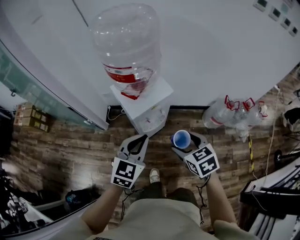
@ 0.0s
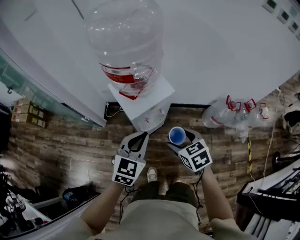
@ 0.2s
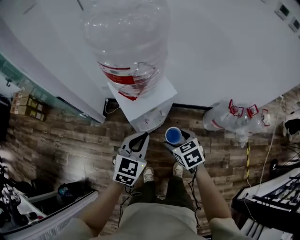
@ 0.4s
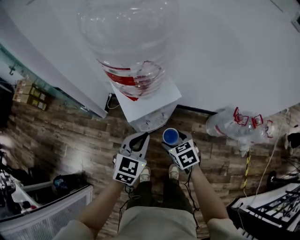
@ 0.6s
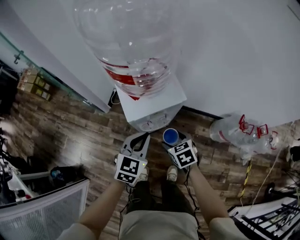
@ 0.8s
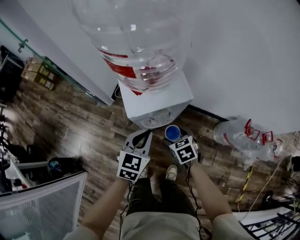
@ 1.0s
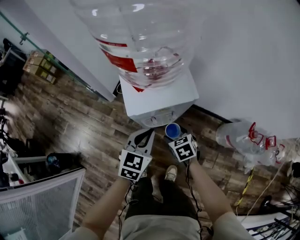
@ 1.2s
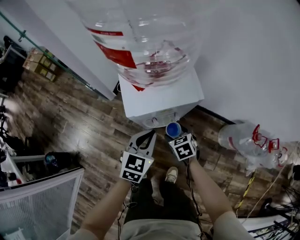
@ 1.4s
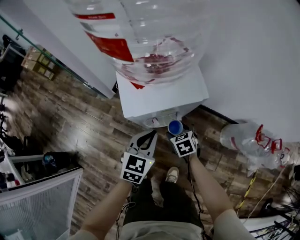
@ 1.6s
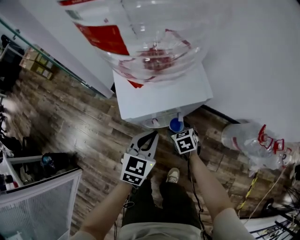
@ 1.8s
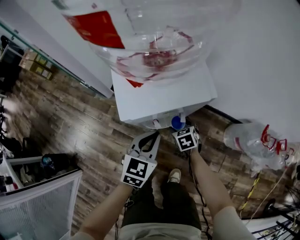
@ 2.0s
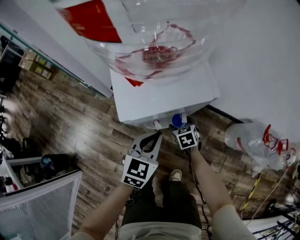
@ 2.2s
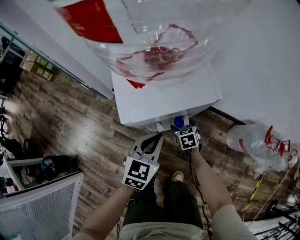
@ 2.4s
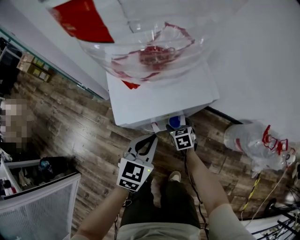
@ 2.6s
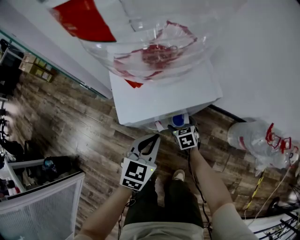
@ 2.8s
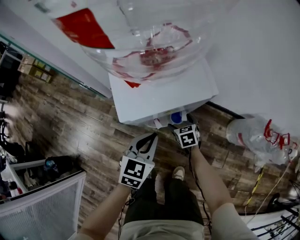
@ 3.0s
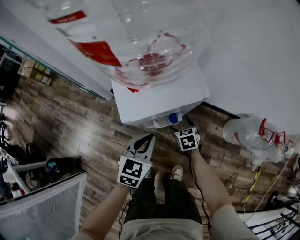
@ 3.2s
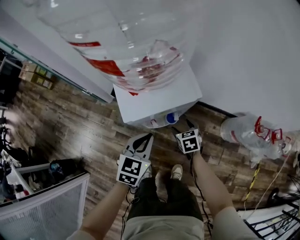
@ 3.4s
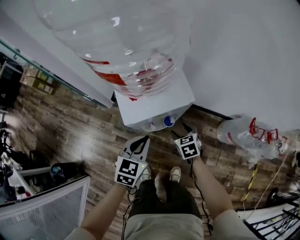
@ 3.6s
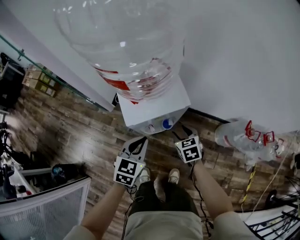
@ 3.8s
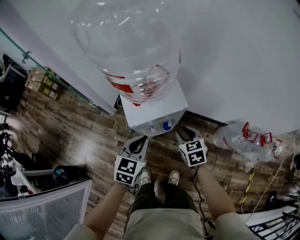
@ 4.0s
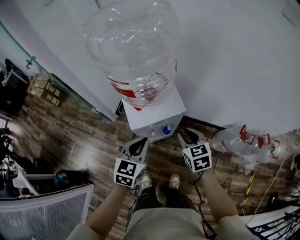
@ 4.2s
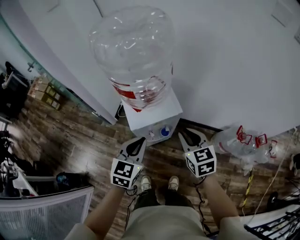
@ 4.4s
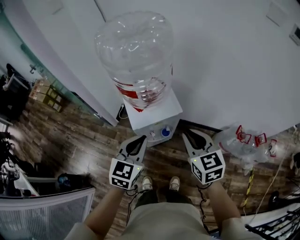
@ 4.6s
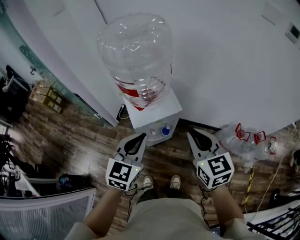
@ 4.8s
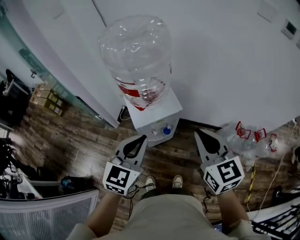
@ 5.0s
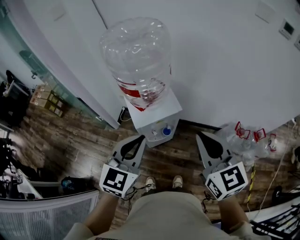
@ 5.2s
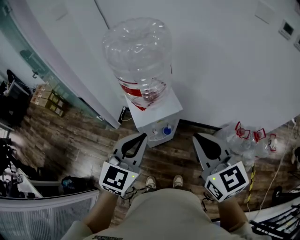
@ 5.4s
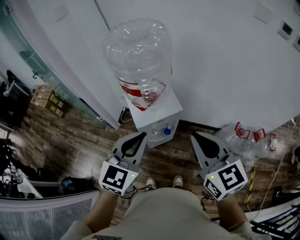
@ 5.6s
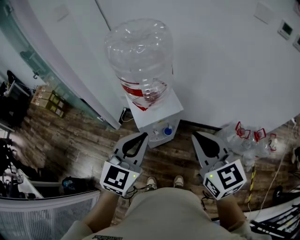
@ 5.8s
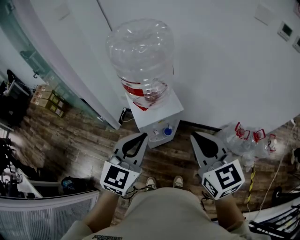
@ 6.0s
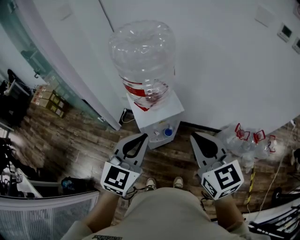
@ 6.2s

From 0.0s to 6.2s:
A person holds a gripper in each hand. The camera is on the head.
From 0.0s to 1.6s: The two grippers go approximately 35 cm downward and forward. The right gripper swivels some 20 degrees, while the left gripper swivels some 30 degrees.
From 3.2s to 4.6s: The right gripper goes approximately 50 cm upward, turns by about 30 degrees, and closes up. The left gripper is displaced upward by approximately 30 cm.
From 4.6s to 6.2s: Both grippers travel together upward and backward, roughly 15 cm.

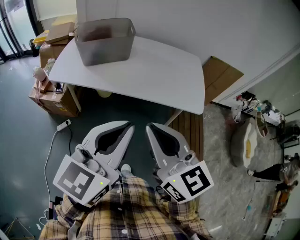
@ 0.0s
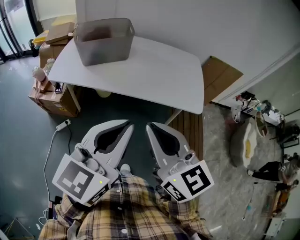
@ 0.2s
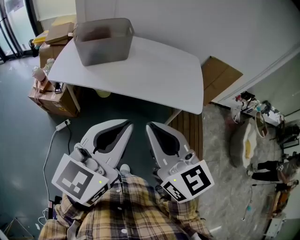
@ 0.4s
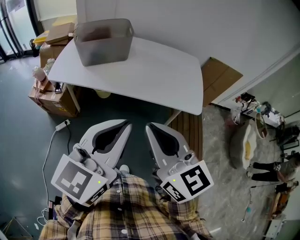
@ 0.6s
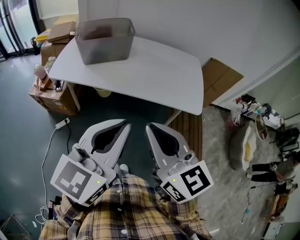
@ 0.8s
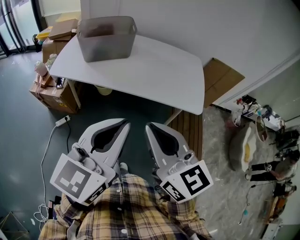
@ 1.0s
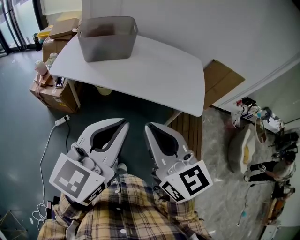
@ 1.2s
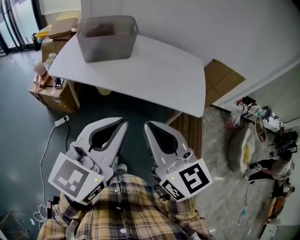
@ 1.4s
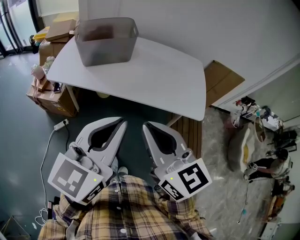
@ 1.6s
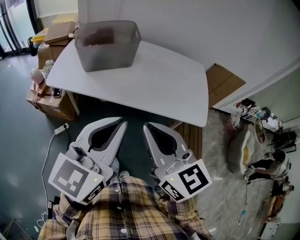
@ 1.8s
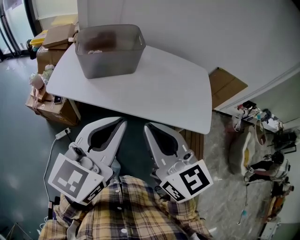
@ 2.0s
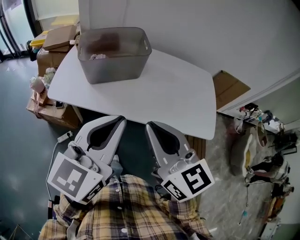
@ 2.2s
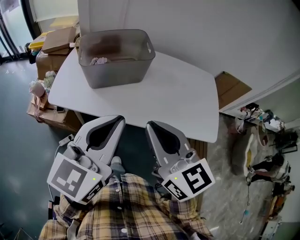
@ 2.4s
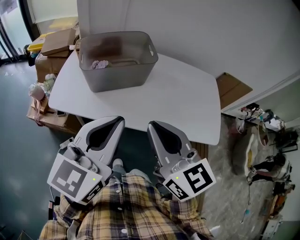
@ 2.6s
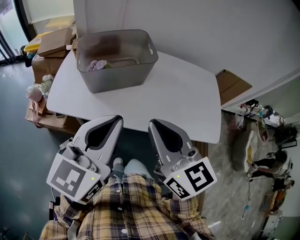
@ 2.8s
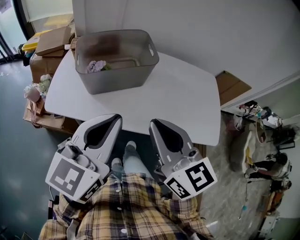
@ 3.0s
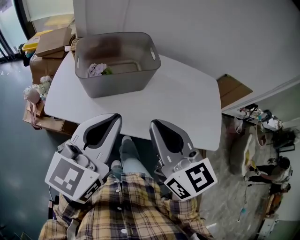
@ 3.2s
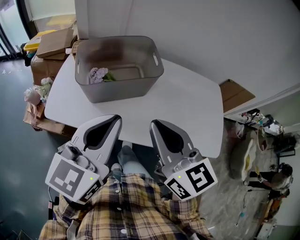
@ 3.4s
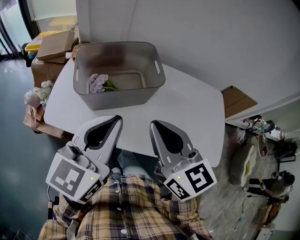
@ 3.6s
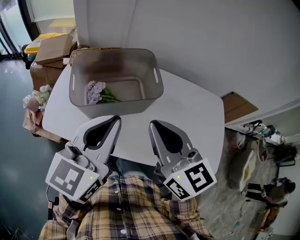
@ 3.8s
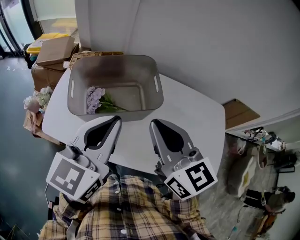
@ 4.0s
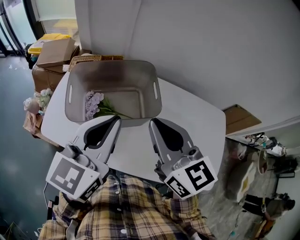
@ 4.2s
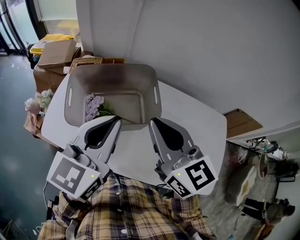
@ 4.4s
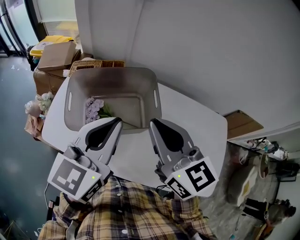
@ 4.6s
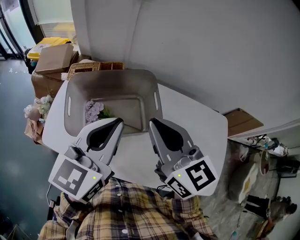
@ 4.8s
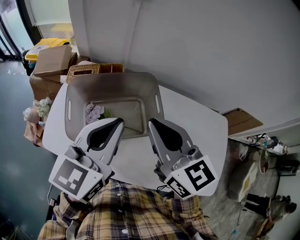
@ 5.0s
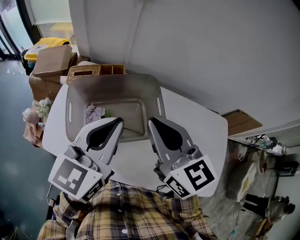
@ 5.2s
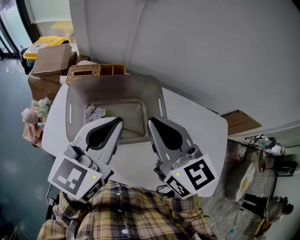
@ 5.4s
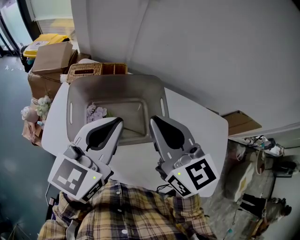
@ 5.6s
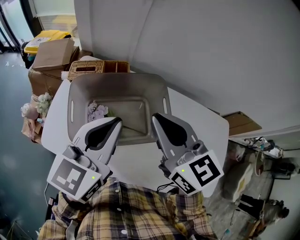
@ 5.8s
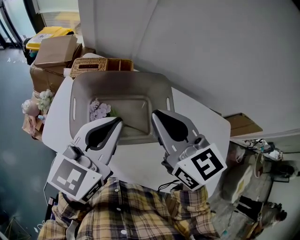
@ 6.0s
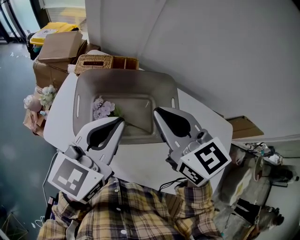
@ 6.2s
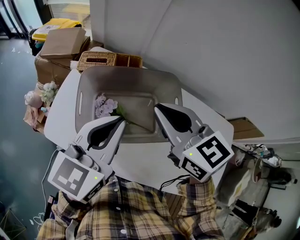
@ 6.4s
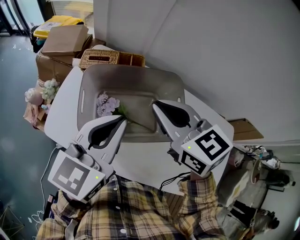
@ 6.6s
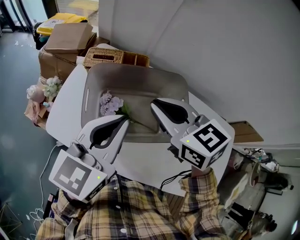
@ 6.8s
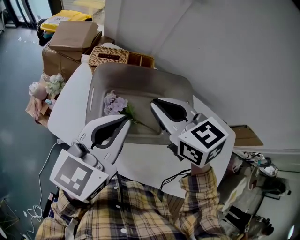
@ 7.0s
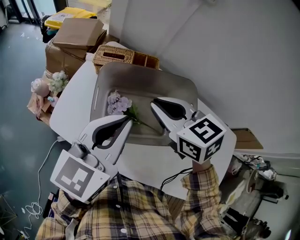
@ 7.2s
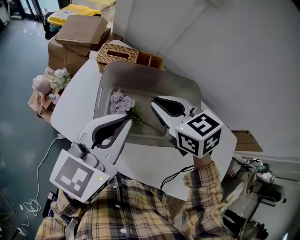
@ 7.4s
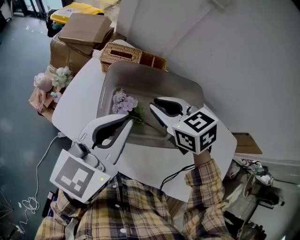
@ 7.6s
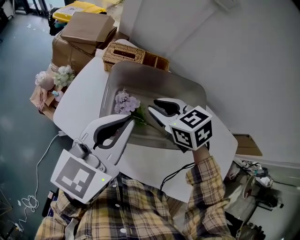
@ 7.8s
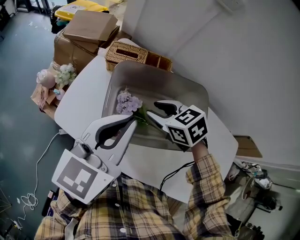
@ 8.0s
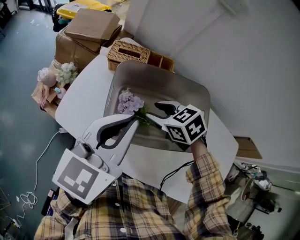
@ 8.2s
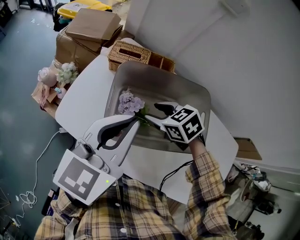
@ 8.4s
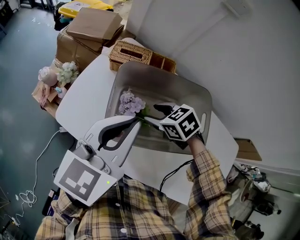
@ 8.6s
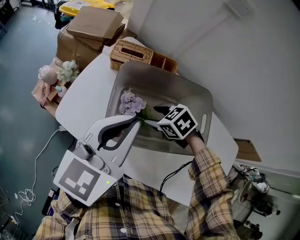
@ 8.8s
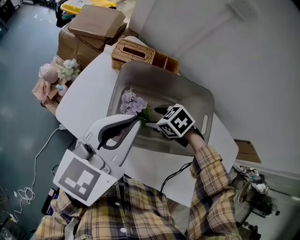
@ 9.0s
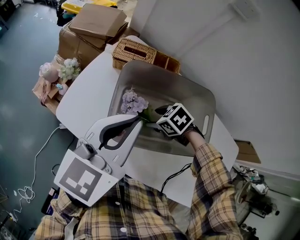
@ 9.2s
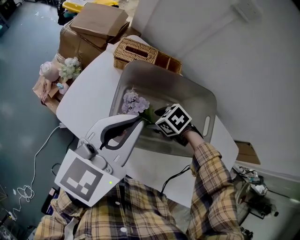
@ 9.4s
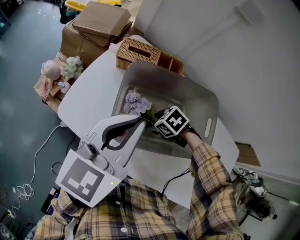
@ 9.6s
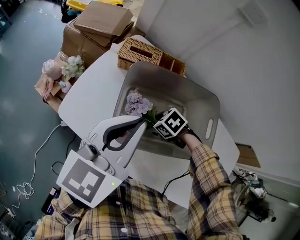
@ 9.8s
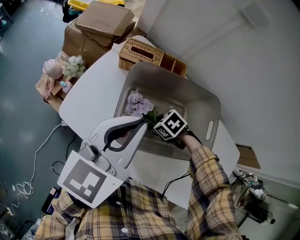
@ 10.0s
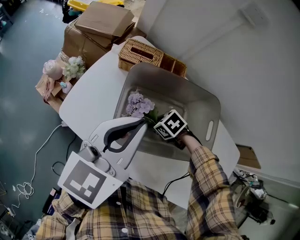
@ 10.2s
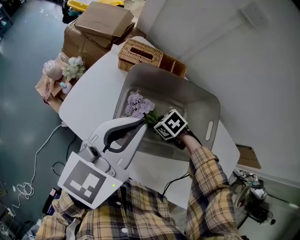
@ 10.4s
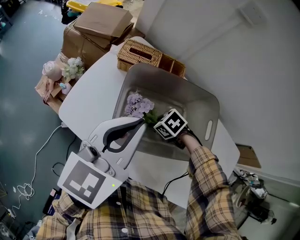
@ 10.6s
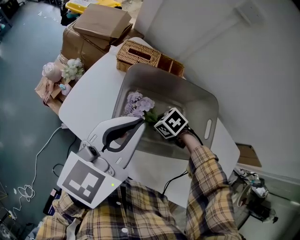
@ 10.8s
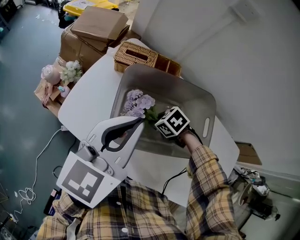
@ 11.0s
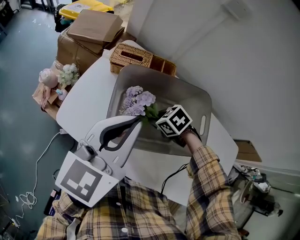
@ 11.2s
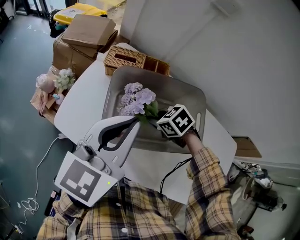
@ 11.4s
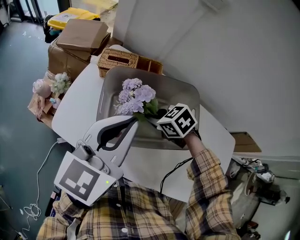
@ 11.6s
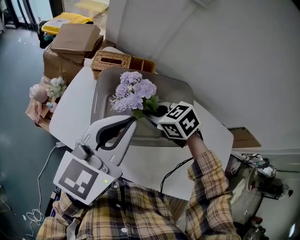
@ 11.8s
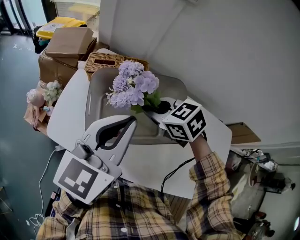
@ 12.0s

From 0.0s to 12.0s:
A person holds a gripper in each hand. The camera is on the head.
From 0.0s to 1.6s: There are only small adjustments of the grippers.
From 1.6s to 3.0s: Both grippers move forward and to the left, some 25 cm.
From 3.0s to 4.4s: The grippers both shift forward by approximately 25 cm.
From 4.4s to 6.0s: The right gripper goes roughly 10 cm forward and to the left; the left gripper travels forward by about 5 cm.
From 6.0s to 7.6s: The right gripper heads downward, to the left and forward, covering some 15 cm, and swivels some 30 degrees, while the left gripper goes about 10 cm to the left.
From 7.6s to 9.0s: The right gripper travels downward by roughly 15 cm, turns by roughly 30 degrees, and opens.
From 9.0s to 10.4s: The right gripper moves downward, roughly 5 cm, and closes its fingers.
From 10.4s to 12.0s: The left gripper changes place by approximately 10 cm, while the right gripper travels upward by roughly 20 cm, and swivels approximately 40 degrees.

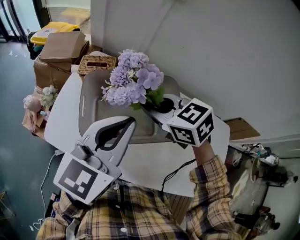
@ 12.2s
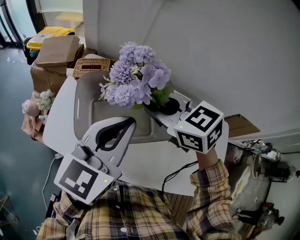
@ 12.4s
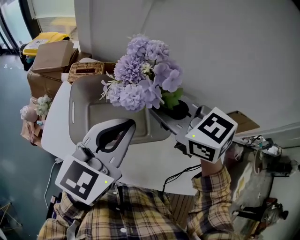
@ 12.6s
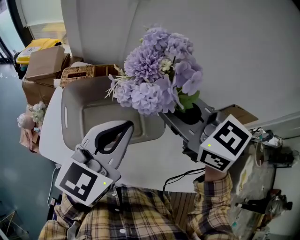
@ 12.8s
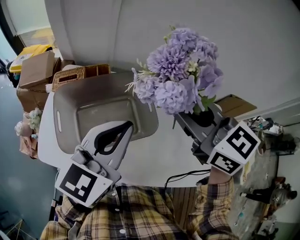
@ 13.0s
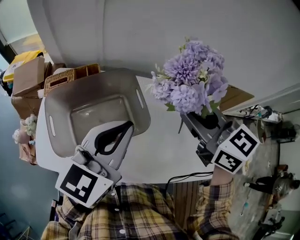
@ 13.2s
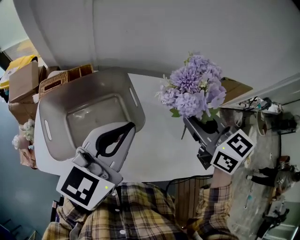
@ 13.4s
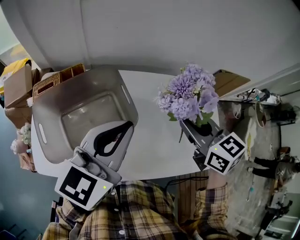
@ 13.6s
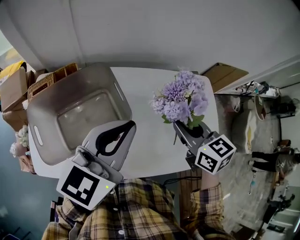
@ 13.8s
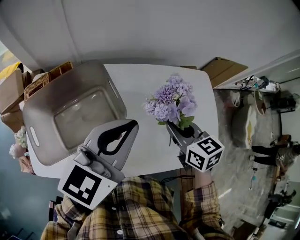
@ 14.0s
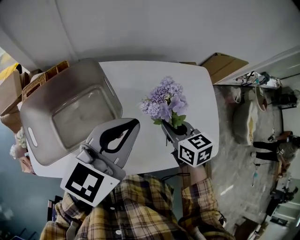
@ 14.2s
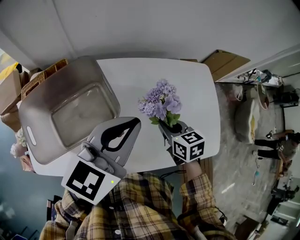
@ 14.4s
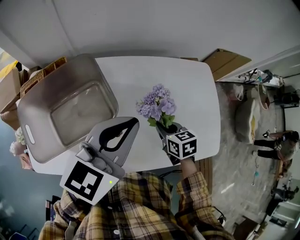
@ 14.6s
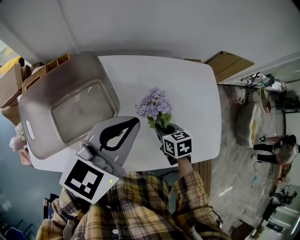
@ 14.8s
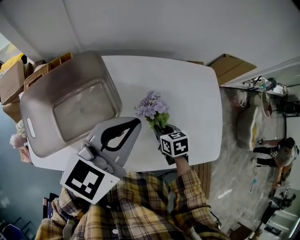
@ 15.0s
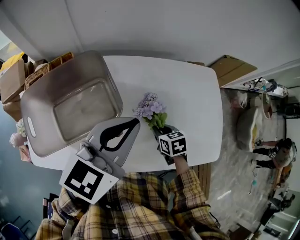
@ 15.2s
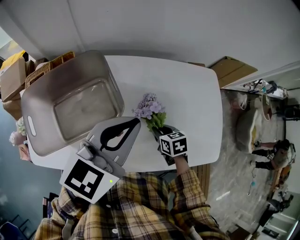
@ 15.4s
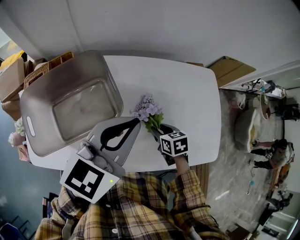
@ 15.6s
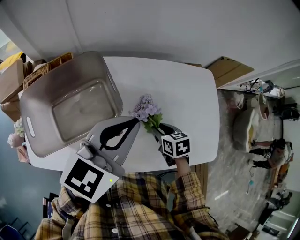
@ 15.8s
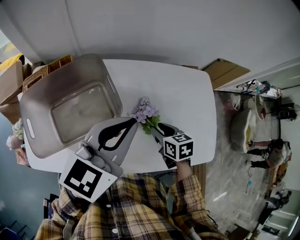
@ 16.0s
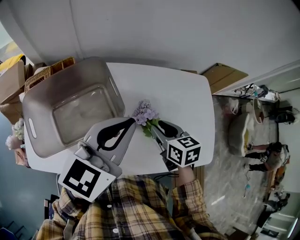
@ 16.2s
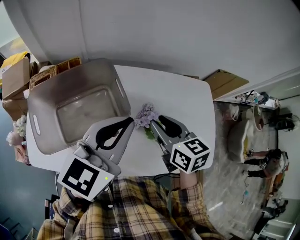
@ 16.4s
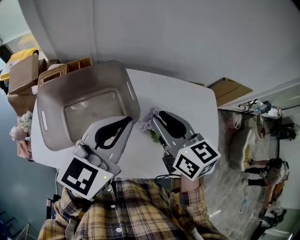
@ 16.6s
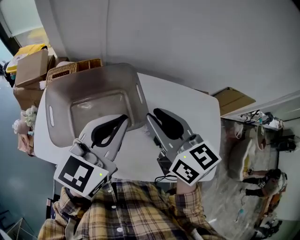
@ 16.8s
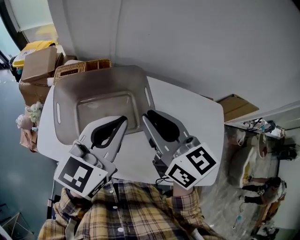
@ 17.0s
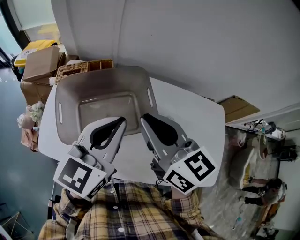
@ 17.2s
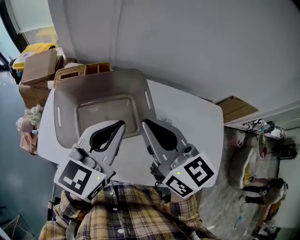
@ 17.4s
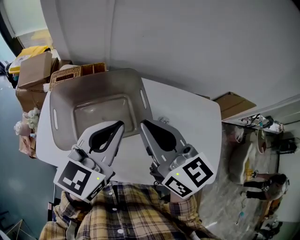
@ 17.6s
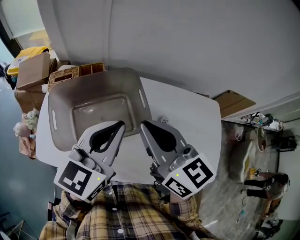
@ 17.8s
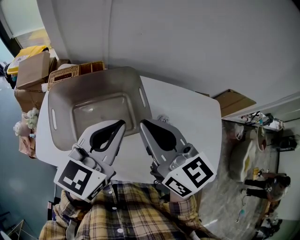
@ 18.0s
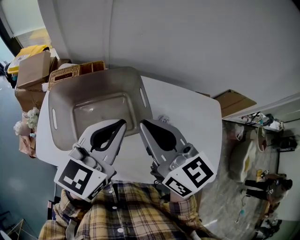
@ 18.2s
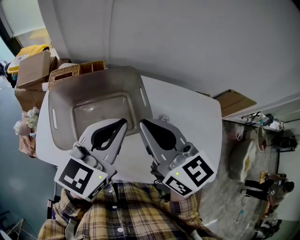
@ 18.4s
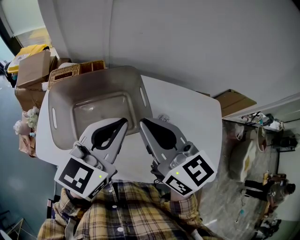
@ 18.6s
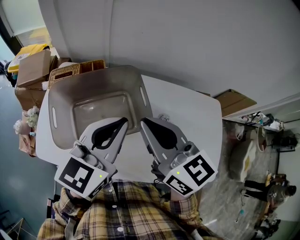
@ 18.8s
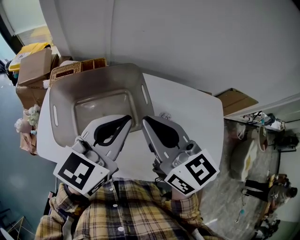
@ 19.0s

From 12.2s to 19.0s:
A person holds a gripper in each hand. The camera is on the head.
From 12.2s to 13.6s: The right gripper travels upward and back again, approximately 15 cm each way, and turns by approximately 40 degrees, while the left gripper moves some 20 cm, and swivels approximately 20 degrees.
From 13.6s to 15.0s: The left gripper moves to the right, roughly 10 cm, while the right gripper moves downward, roughly 30 cm, and turns by about 30 degrees.
From 15.0s to 16.2s: The right gripper moves upward, approximately 10 cm.
From 16.2s to 17.6s: The left gripper is displaced to the left by roughly 10 cm; the right gripper moves upward and to the left, some 30 cm, points its fingers approximately 30 degrees further upward, and closes its fingers.
From 17.6s to 19.0s: The grippers make only small movements.
